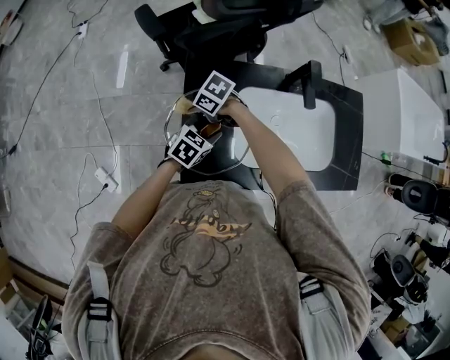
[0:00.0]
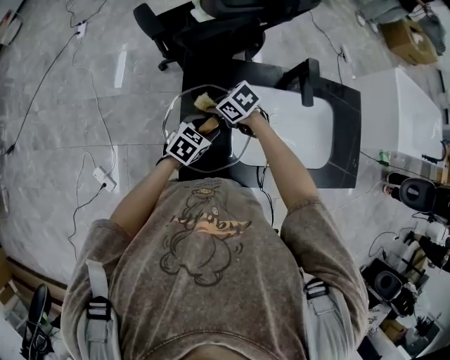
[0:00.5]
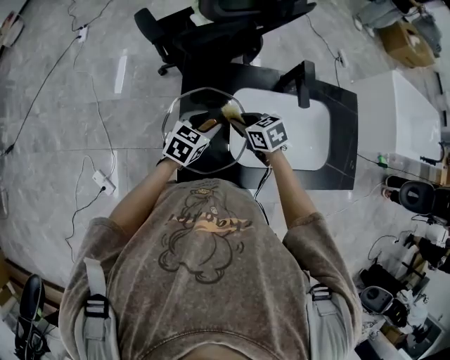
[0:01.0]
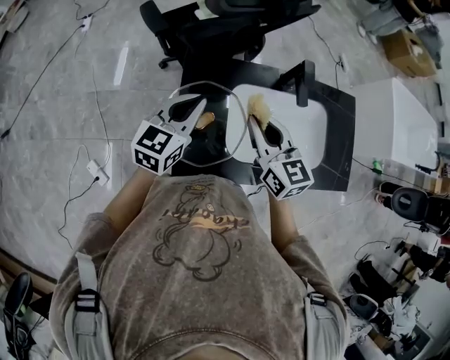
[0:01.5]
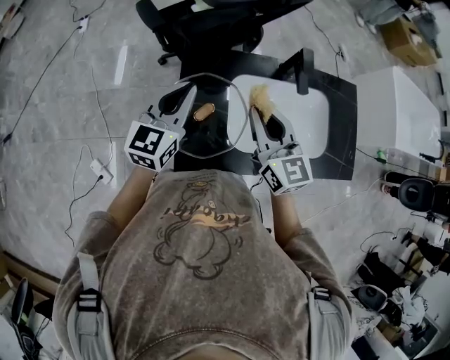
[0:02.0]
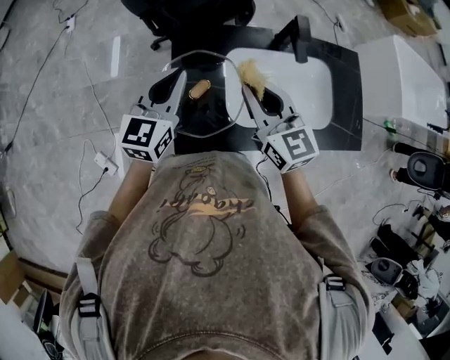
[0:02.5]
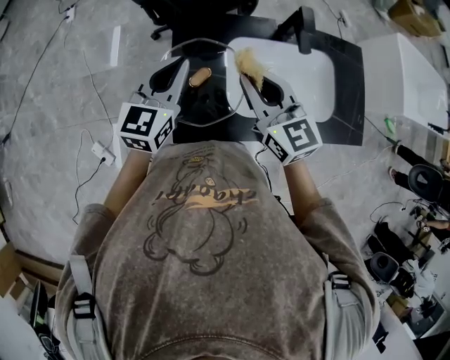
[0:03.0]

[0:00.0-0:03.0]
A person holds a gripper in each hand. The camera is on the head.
0:00.0 to 0:01.5: Both grippers move upward, some 20 cm. The right gripper tilts its fingers about 40 degrees upward, while the left gripper changes its angle by about 30 degrees, and closes its fingers.
0:01.5 to 0:03.0: There are only small adjustments of the grippers.

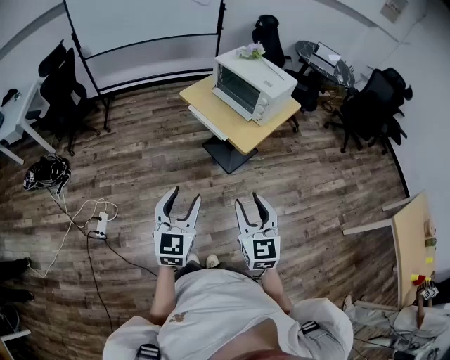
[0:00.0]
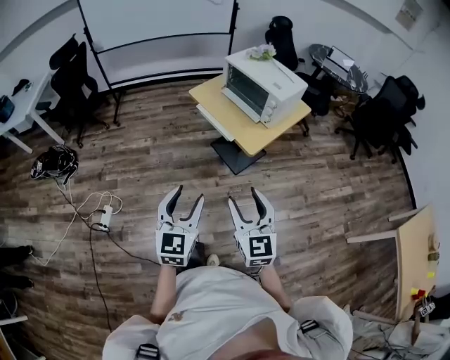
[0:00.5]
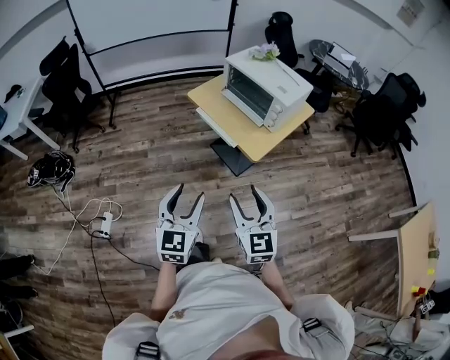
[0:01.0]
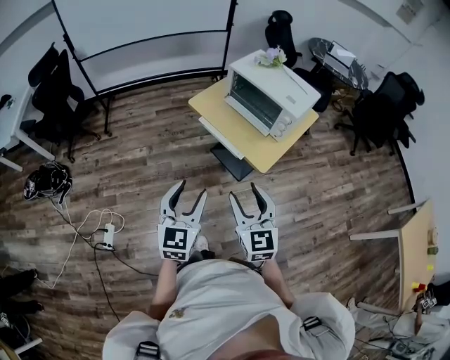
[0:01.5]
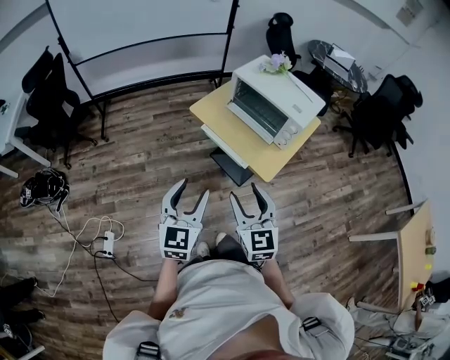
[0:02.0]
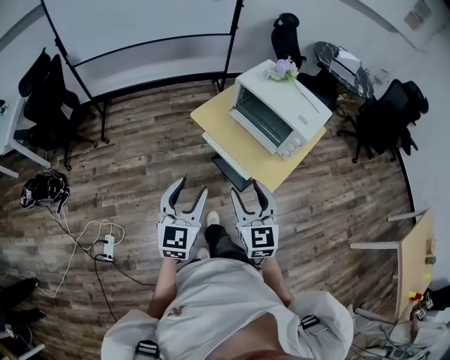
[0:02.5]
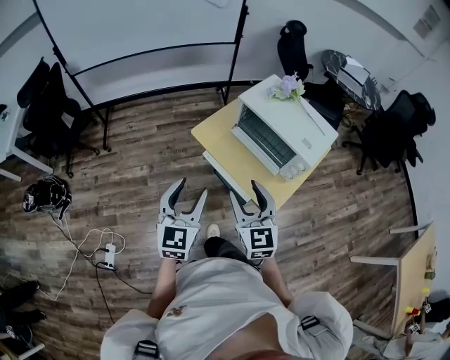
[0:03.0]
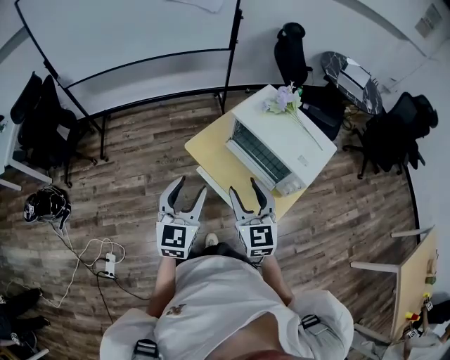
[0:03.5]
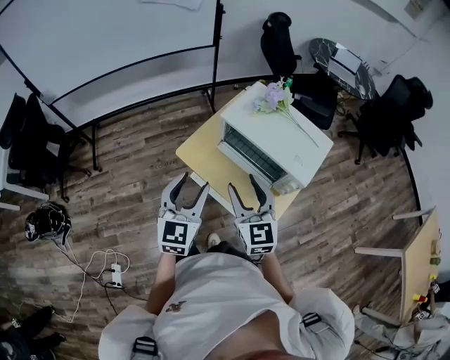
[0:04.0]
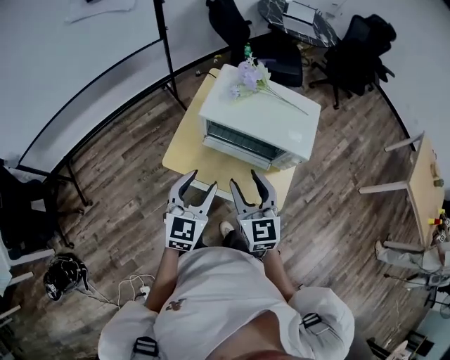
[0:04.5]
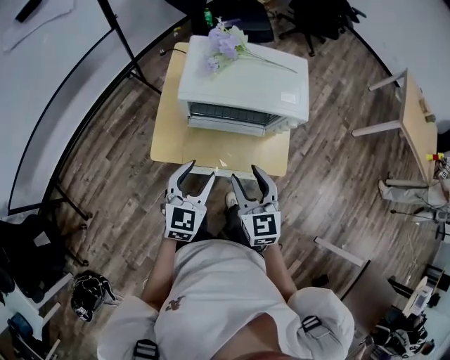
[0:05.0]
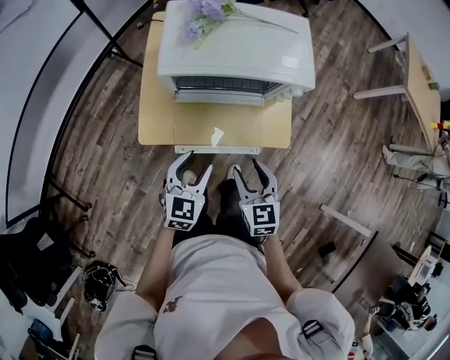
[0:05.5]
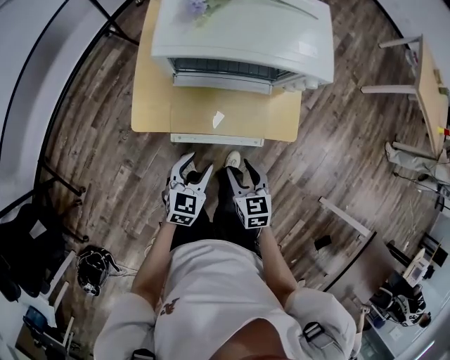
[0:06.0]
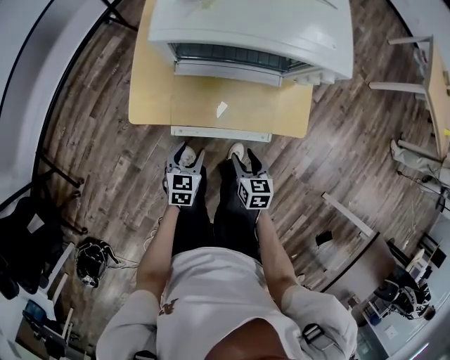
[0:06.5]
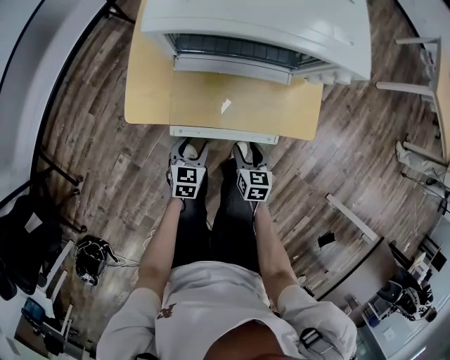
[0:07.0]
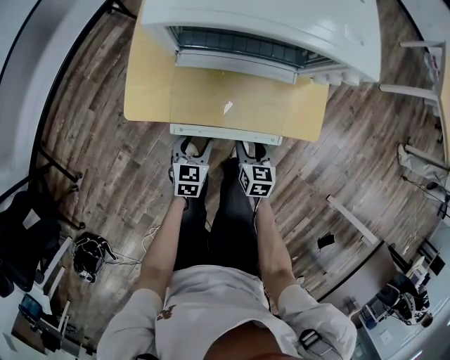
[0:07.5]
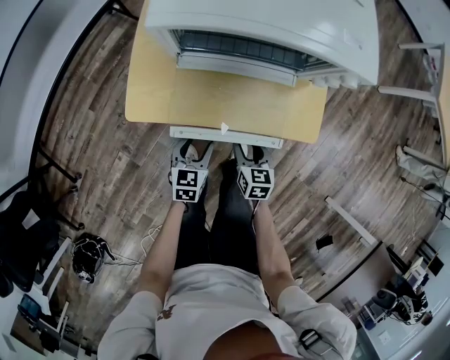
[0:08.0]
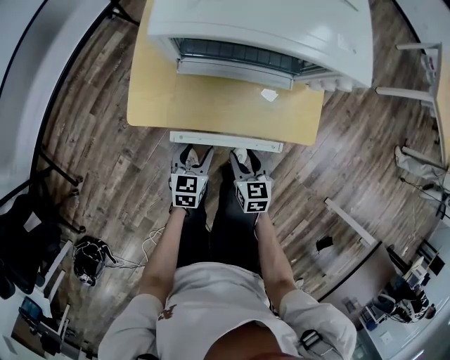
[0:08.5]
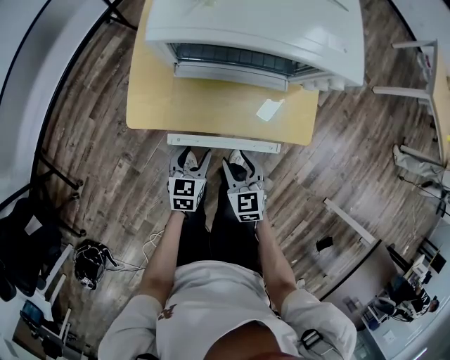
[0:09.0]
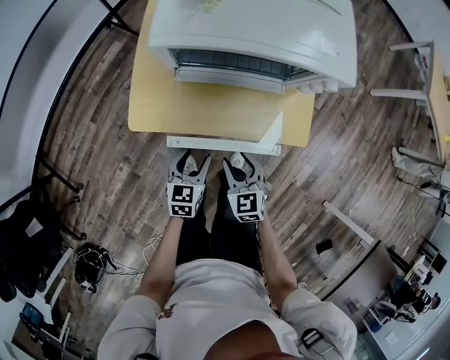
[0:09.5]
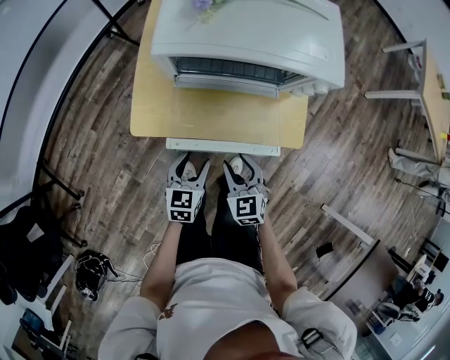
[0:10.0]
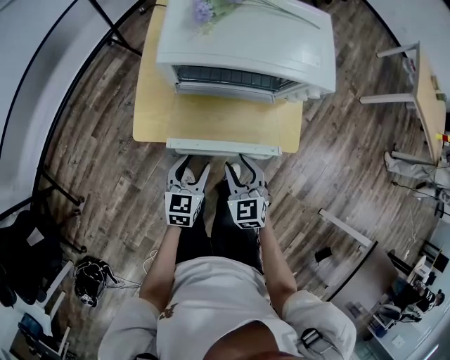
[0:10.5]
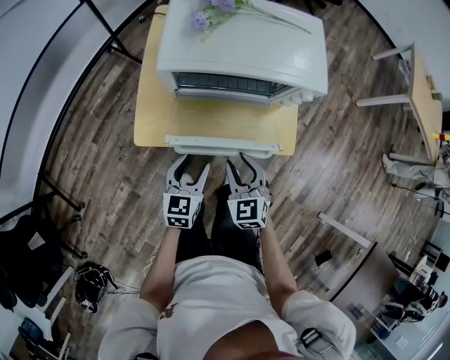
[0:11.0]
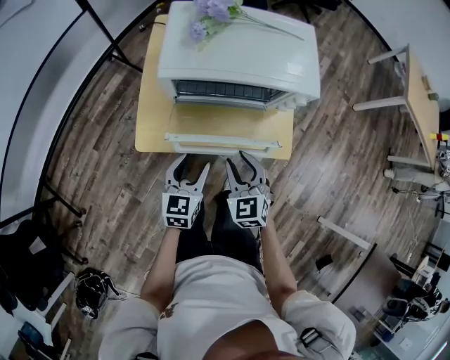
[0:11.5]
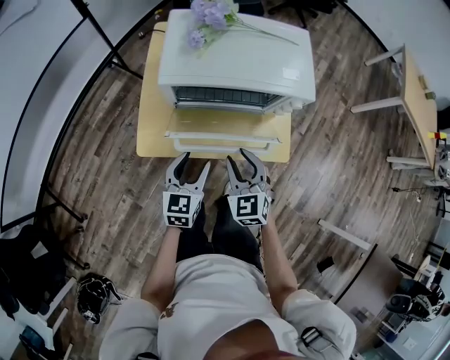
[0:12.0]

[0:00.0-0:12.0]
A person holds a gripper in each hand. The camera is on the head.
0:00.0 to 0:02.0: The right gripper travels forward and to the left by some 25 cm, while the left gripper travels forward by some 25 cm.
0:02.0 to 0:04.0: The two grippers go some 30 cm forward.
0:04.0 to 0:06.0: Both grippers travel together downward, approximately 30 cm. The left gripper swivels approximately 50 degrees. Meanwhile the right gripper angles its fingers downward, by approximately 30 degrees.
0:06.0 to 0:08.0: The two grippers go approximately 15 cm downward.
0:08.0 to 0:10.0: Both grippers move upward, about 10 cm. The right gripper swivels approximately 30 degrees.
0:10.0 to 0:12.0: Both grippers travel together upward and forward, approximately 15 cm.

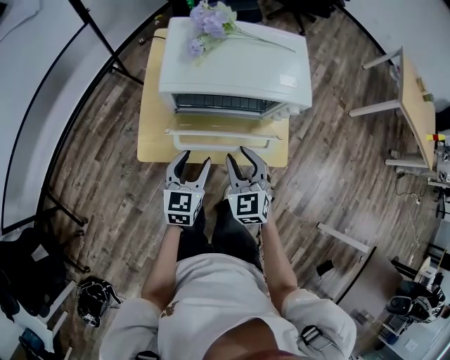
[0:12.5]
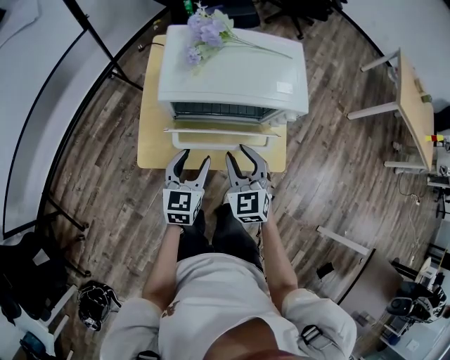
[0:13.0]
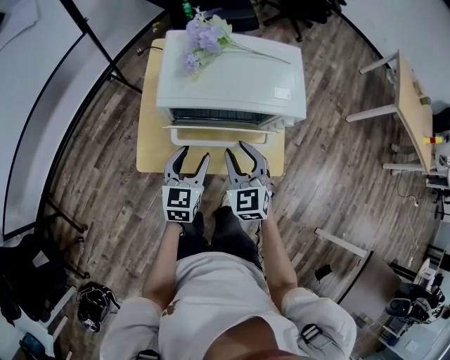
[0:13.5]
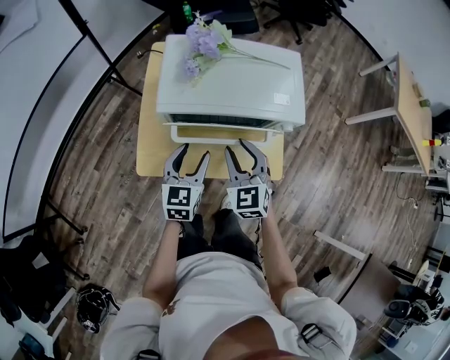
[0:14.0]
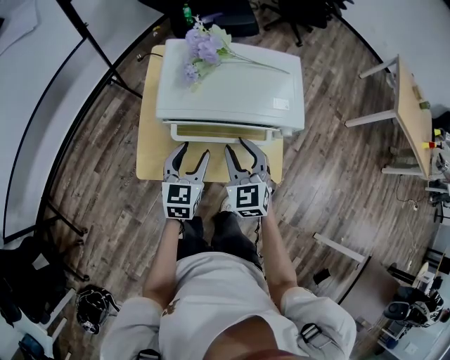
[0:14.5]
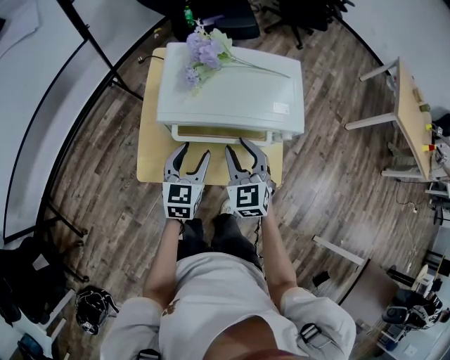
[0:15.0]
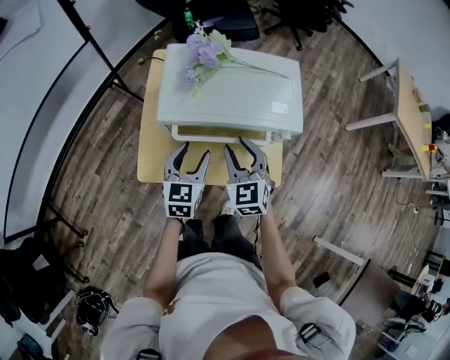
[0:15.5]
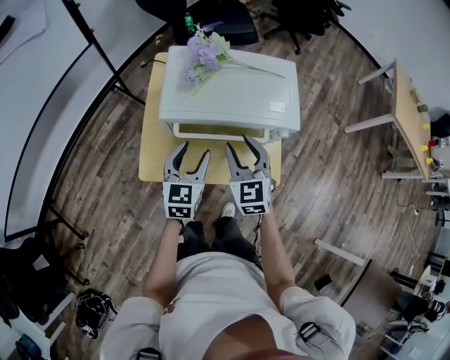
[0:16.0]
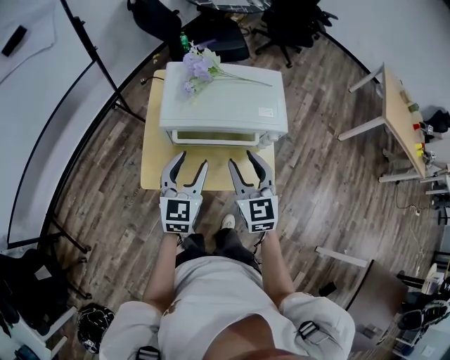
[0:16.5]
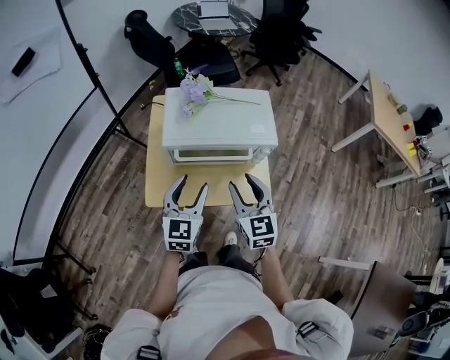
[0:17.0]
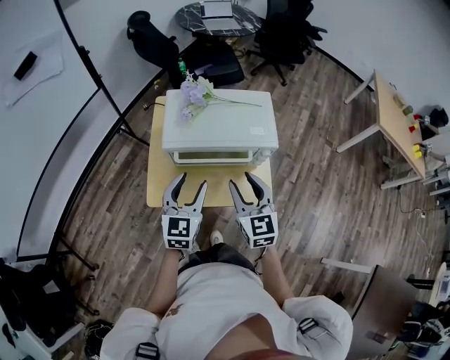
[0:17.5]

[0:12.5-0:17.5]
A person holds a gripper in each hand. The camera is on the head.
0:12.5 to 0:15.0: The left gripper goes approximately 10 cm forward. Meanwhile the right gripper shifts some 10 cm forward and upward.
0:15.0 to 0:17.5: Both grippers move upward and backward, roughly 15 cm. The right gripper changes its angle by approximately 20 degrees.

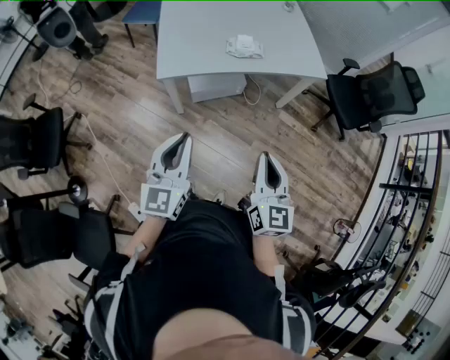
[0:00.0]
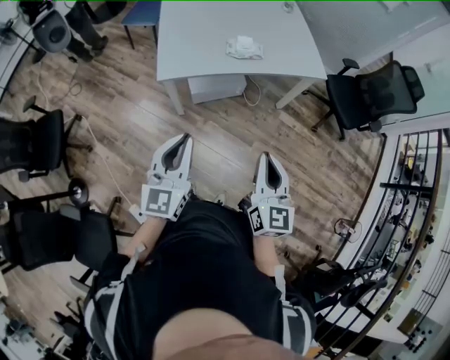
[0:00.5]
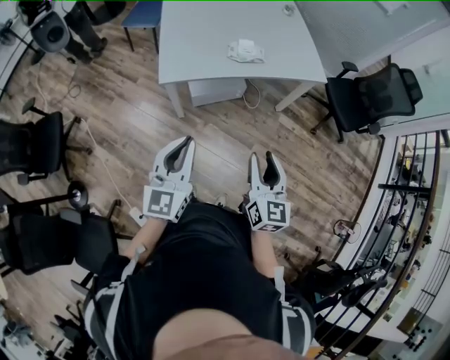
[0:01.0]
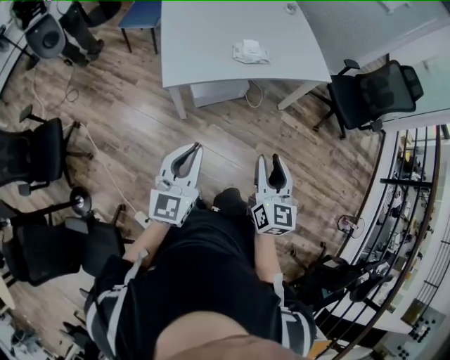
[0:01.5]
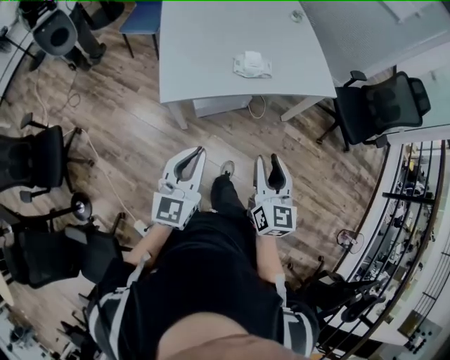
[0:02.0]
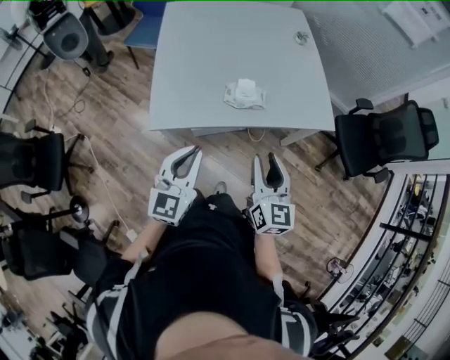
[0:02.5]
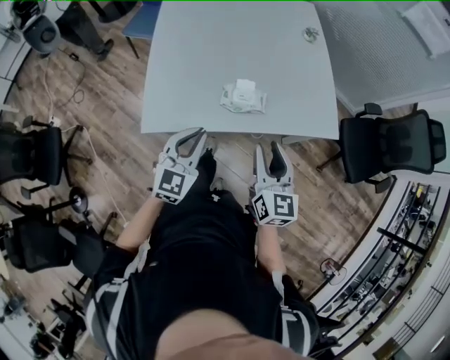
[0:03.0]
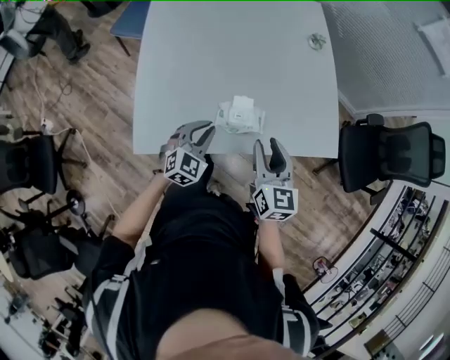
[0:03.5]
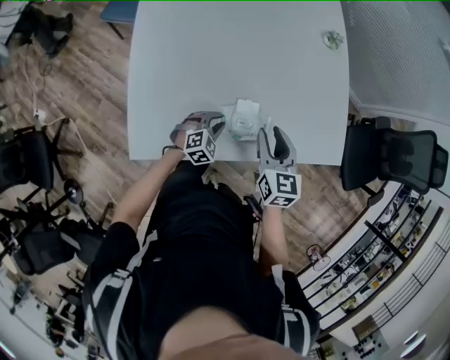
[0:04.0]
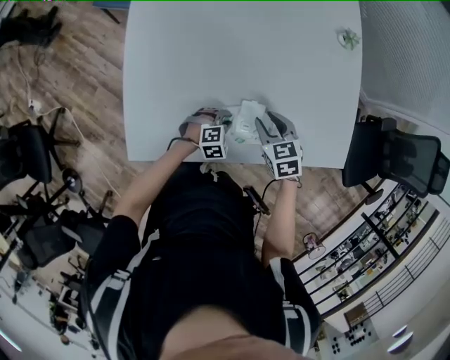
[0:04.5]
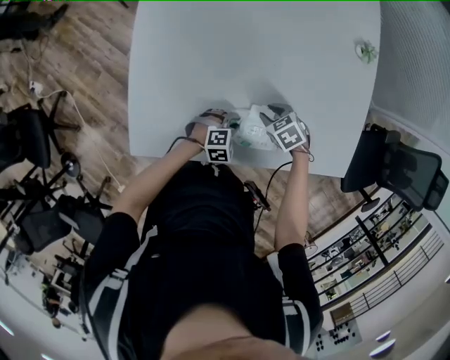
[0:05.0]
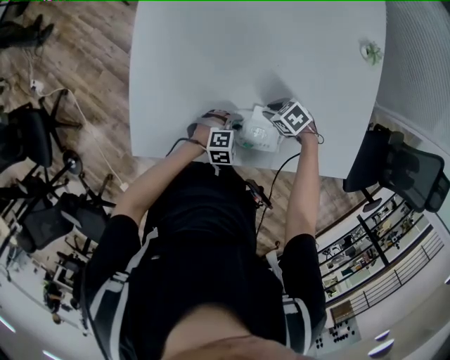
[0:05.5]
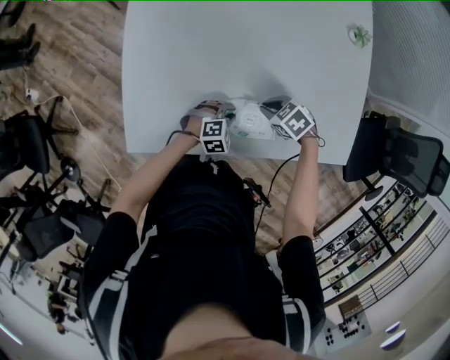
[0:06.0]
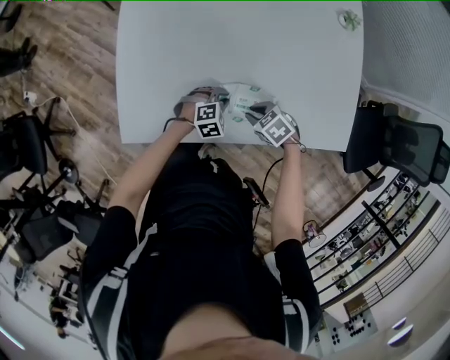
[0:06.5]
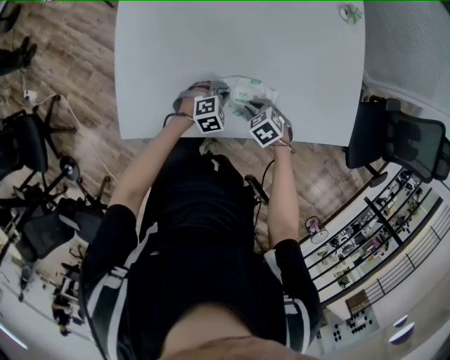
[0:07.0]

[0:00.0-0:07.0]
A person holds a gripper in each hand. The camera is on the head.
0:00.0 to 0:02.0: The right gripper moves forward and to the left, roughly 15 cm, and opens; the left gripper moves forward, about 10 cm.
0:02.0 to 0:03.5: The pair of grippers is taken forward, roughly 50 cm. The left gripper turns by approximately 40 degrees.
0:03.5 to 0:05.0: The two grippers go about 25 cm downward. The right gripper tilts its fingers some 50 degrees downward, while the left gripper swivels approximately 40 degrees.
0:05.0 to 0:07.0: The right gripper moves approximately 10 cm.
